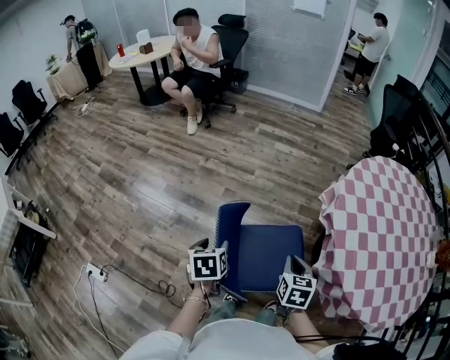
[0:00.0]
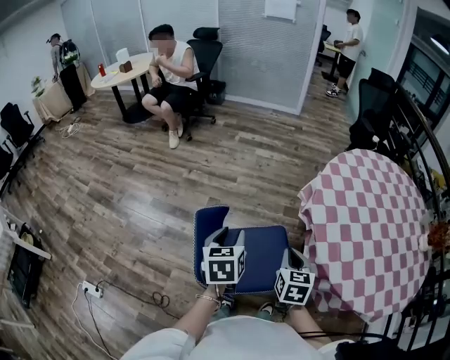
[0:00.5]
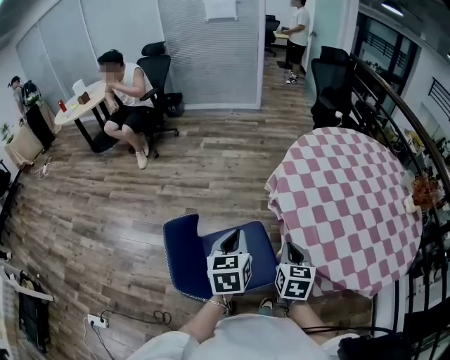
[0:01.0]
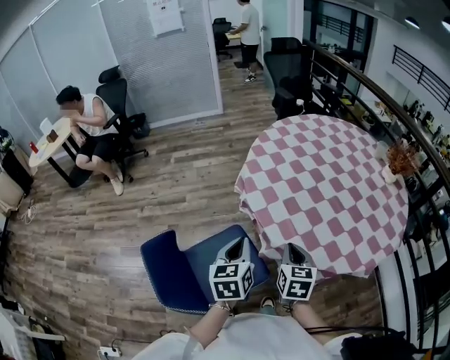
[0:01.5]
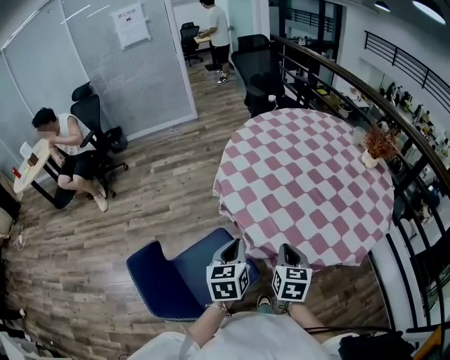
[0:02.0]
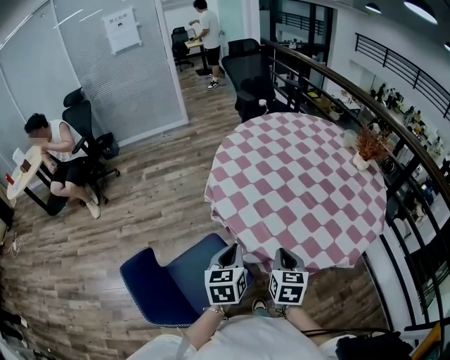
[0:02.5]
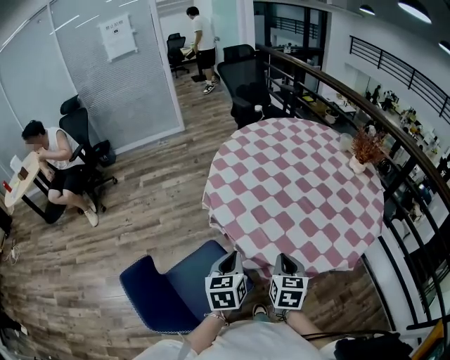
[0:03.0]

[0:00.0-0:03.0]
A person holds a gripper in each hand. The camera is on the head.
0.0 to 1.5 s: The left gripper shifts by approximately 40 cm, turns by about 40 degrees, and closes its fingers; the right gripper moves about 25 cm, and changes its angle by some 30 degrees.
1.5 to 3.0 s: Both grippers travel together to the right, some 5 cm.

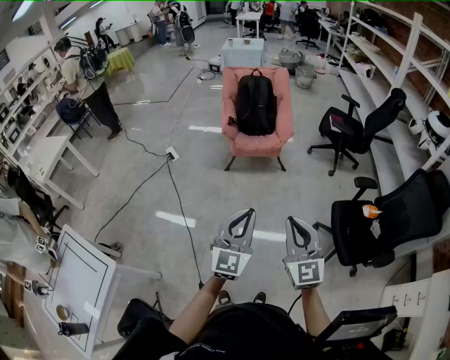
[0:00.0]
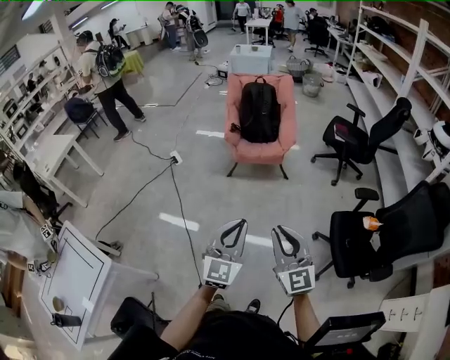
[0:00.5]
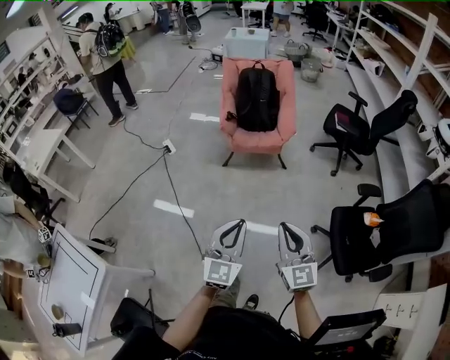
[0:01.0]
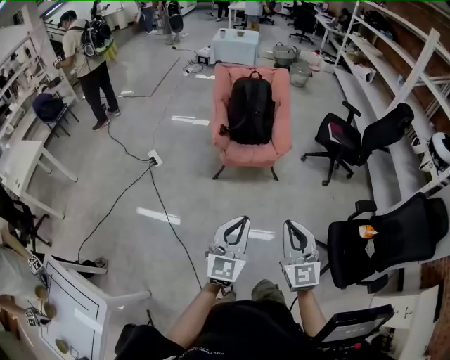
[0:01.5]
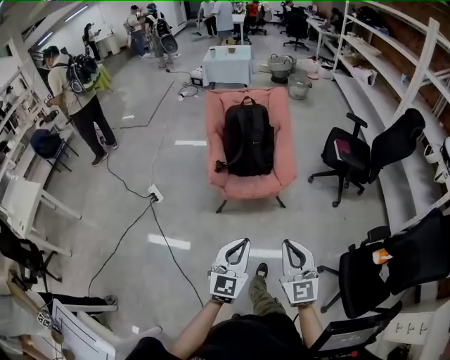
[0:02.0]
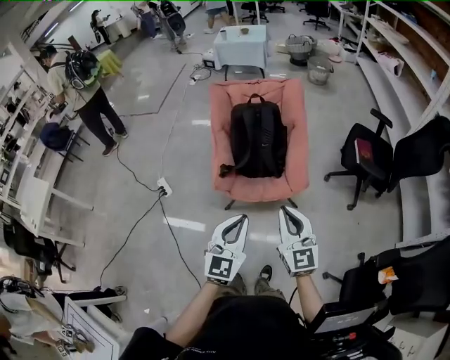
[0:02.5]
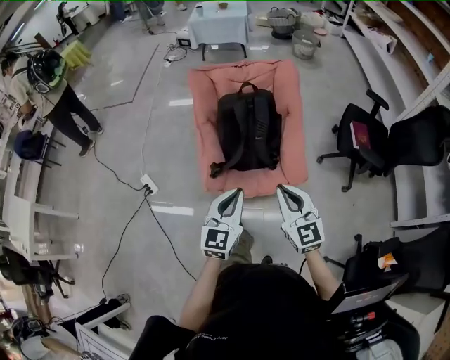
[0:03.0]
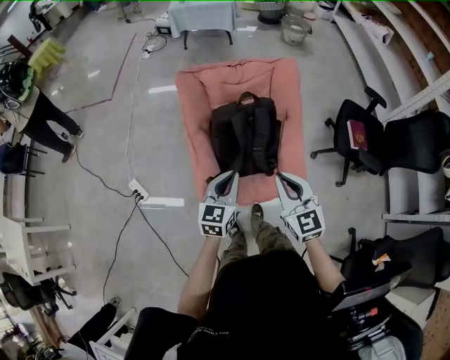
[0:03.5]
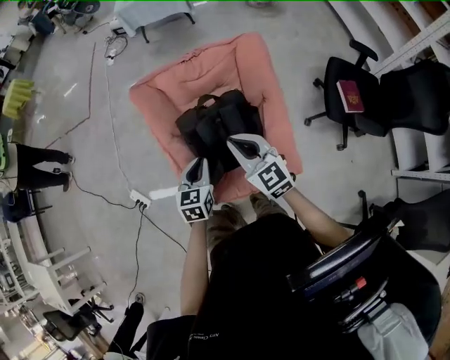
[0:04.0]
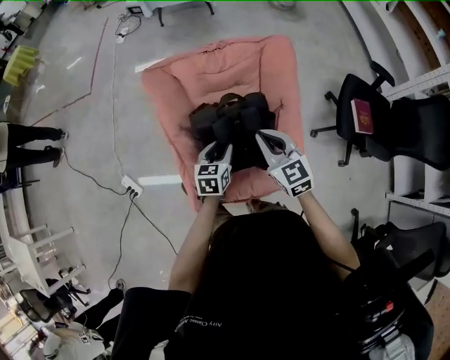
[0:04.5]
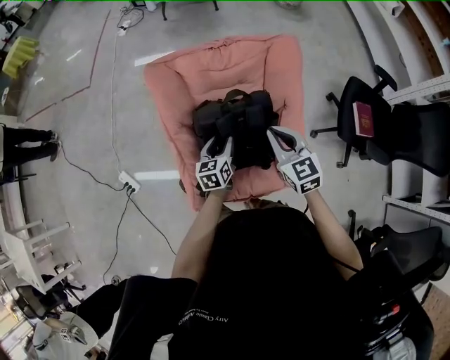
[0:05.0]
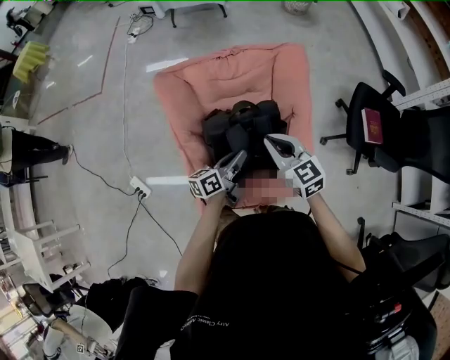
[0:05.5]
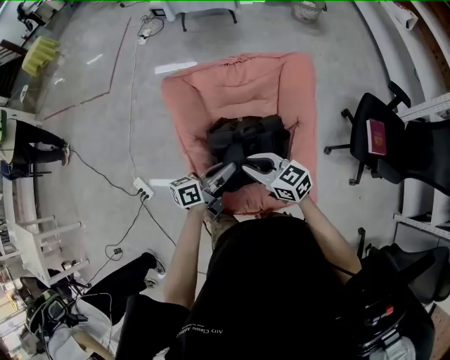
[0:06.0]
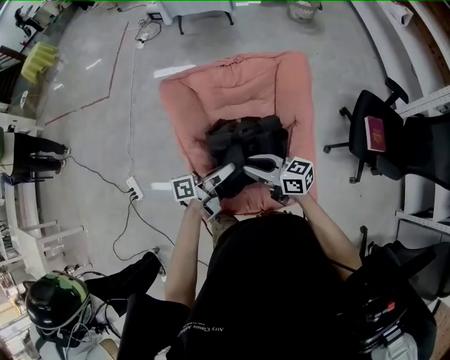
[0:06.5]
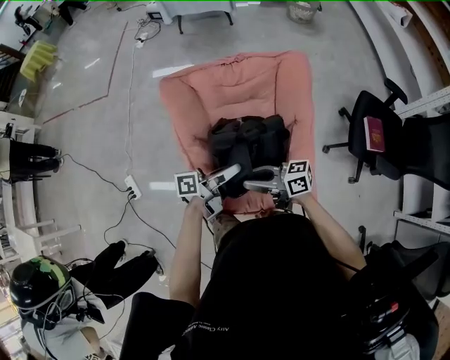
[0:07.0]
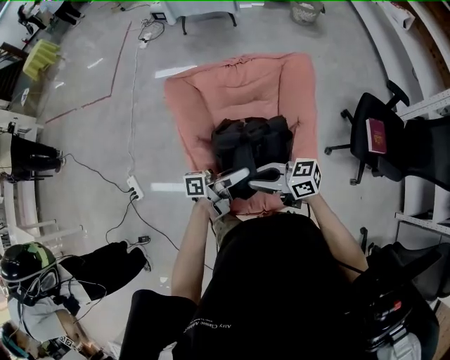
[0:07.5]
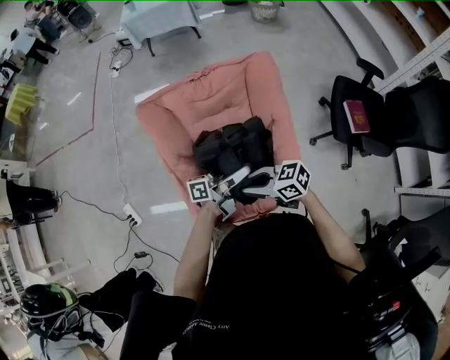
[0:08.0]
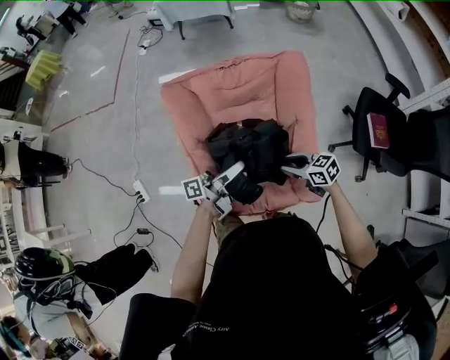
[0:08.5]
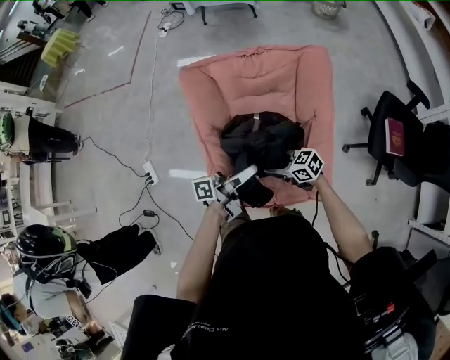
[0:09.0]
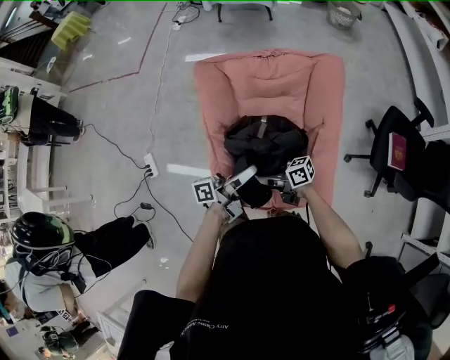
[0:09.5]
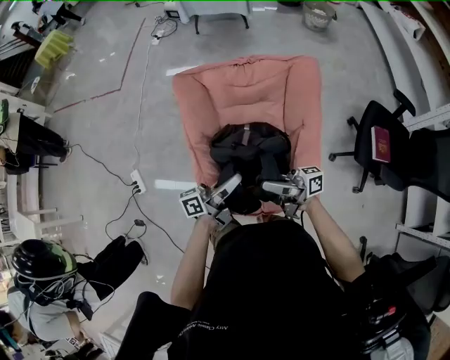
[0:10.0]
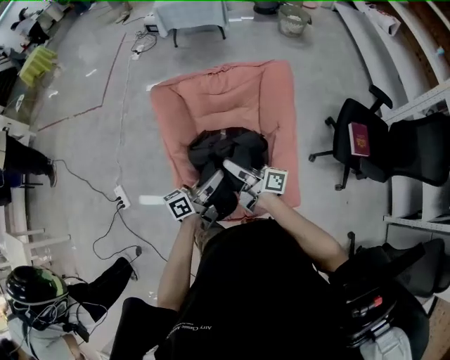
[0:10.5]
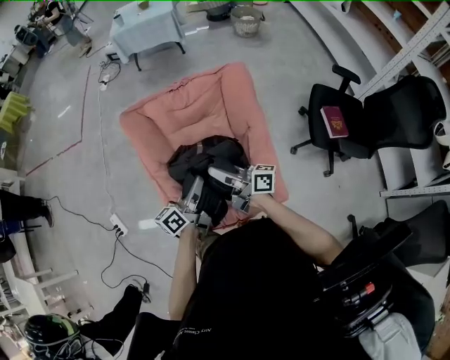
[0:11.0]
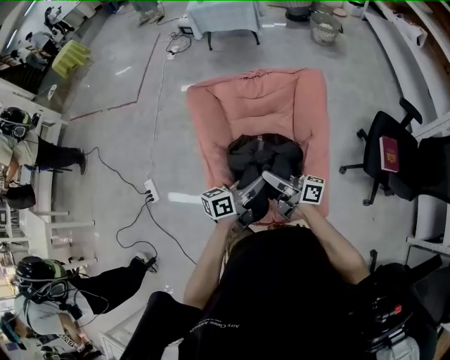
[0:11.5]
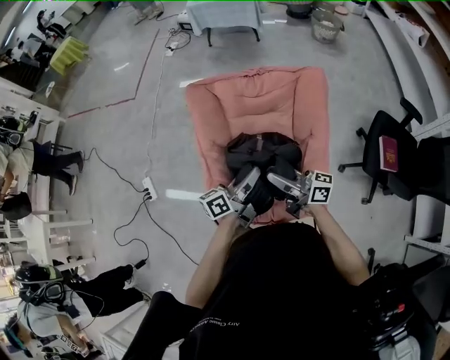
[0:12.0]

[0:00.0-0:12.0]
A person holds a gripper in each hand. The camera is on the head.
0.0 to 2.0 s: Both grippers travel together forward, approximately 40 cm.
2.0 to 4.0 s: Both grippers are carried forward, some 70 cm. The left gripper swivels roughly 30 degrees.
4.0 to 6.0 s: The right gripper shifts some 10 cm downward, and swivels roughly 30 degrees. The left gripper moves some 10 cm downward and comes back, swivels about 50 degrees, and opens, then closes once more.
6.0 to 8.0 s: The right gripper moves about 10 cm. The left gripper shifts by some 10 cm, changes its angle by about 30 degrees, and opens and closes again.
8.0 to 10.0 s: The right gripper goes downward and returns, about 10 cm each way, and tips its fingers upward by some 50 degrees; the left gripper ends up some 10 cm from where it was, and rotates approximately 30 degrees.
10.0 to 12.0 s: The right gripper swivels roughly 30 degrees.

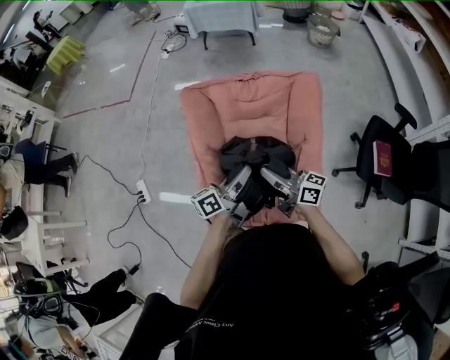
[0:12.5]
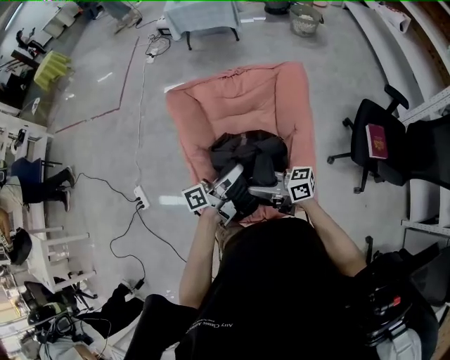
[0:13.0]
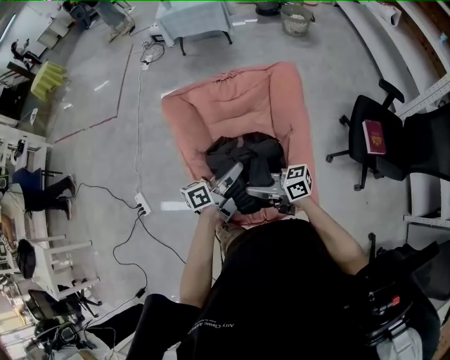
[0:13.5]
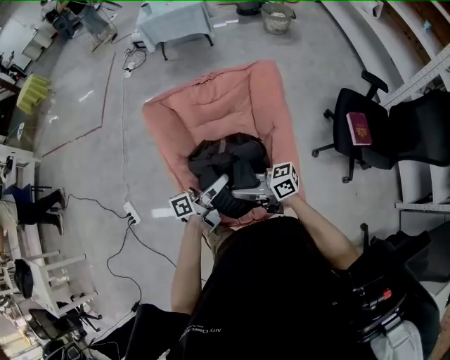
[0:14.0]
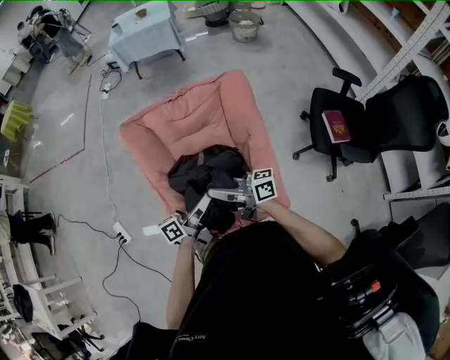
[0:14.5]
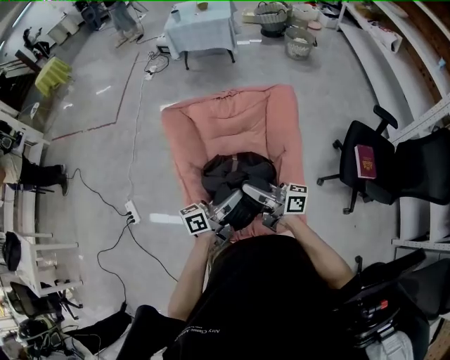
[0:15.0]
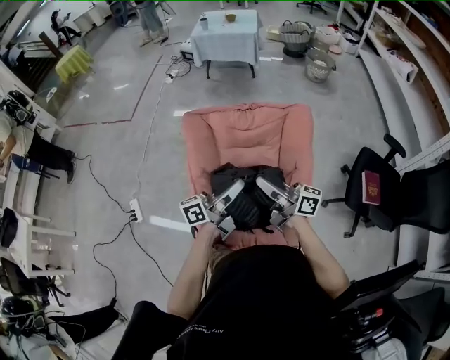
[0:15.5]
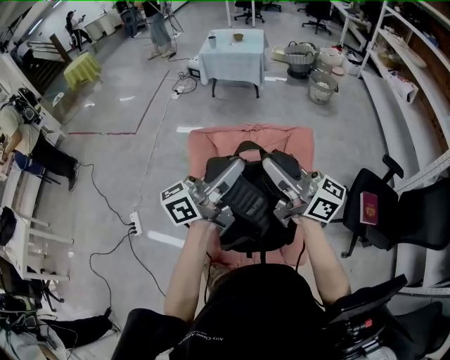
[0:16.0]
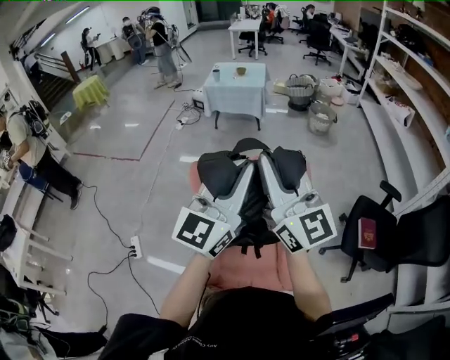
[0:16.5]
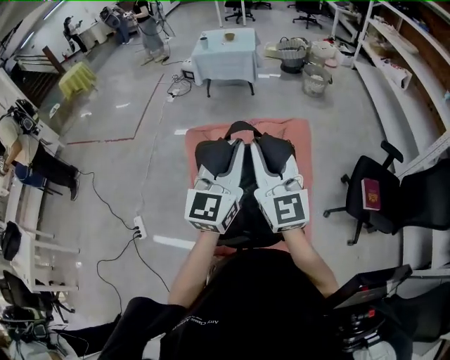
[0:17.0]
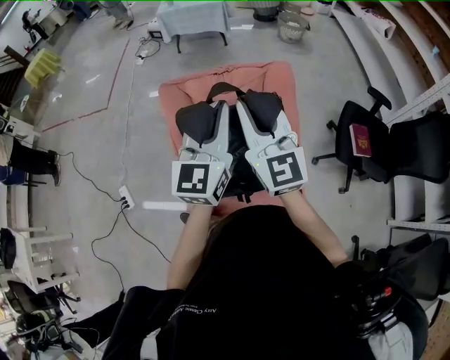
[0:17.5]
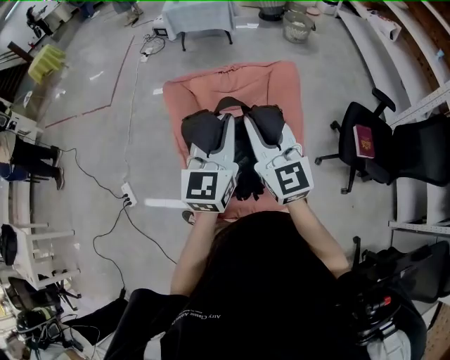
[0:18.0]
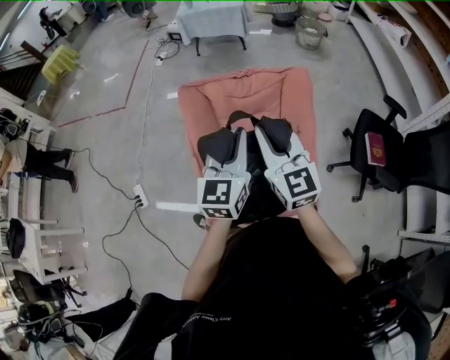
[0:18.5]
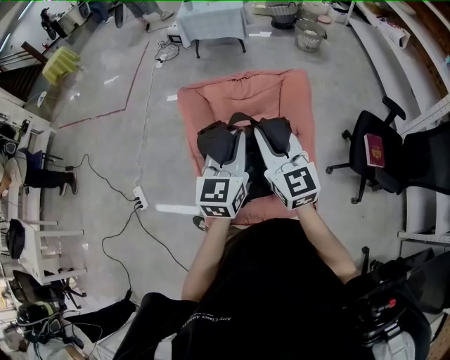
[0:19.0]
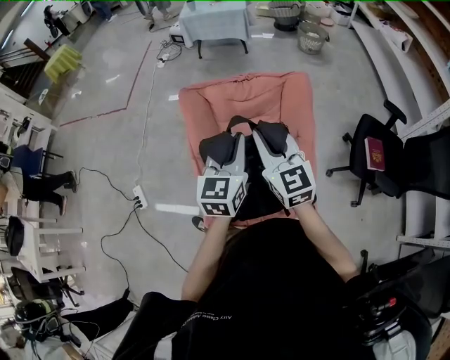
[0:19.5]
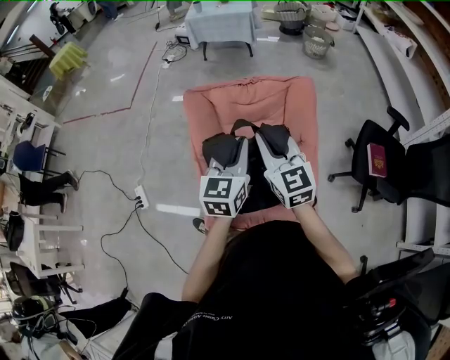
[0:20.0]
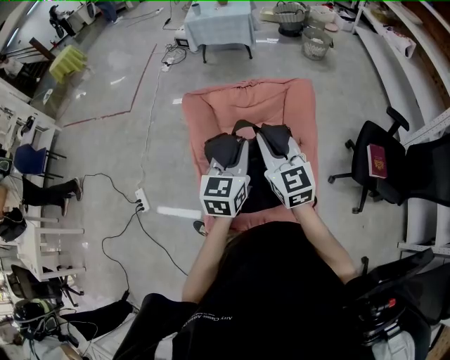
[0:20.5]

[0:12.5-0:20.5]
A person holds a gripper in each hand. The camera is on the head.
12.5 to 14.5 s: The left gripper ends up about 5 cm from where it was.
14.5 to 16.5 s: Both grippers move upward, some 40 cm. The left gripper twists approximately 70 degrees clockwise, seen from behind; the right gripper rolls counterclockwise, seen from behind, by some 70 degrees.
16.5 to 18.5 s: The two grippers go approximately 20 cm downward. The right gripper swivels approximately 20 degrees. The left gripper swivels roughly 20 degrees.
18.5 to 20.5 s: The grippers move only a little.

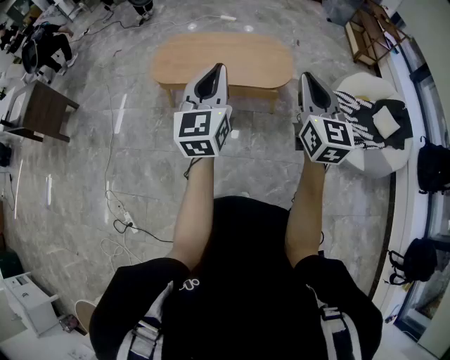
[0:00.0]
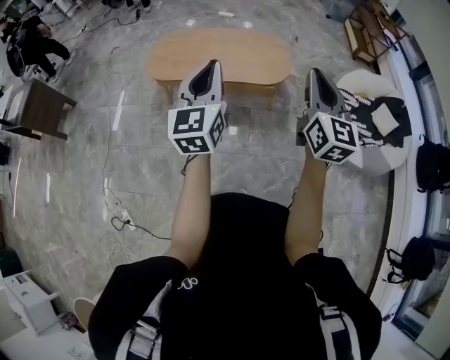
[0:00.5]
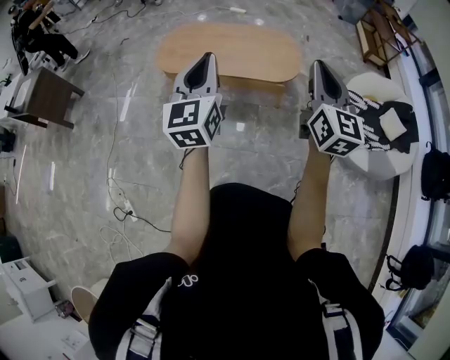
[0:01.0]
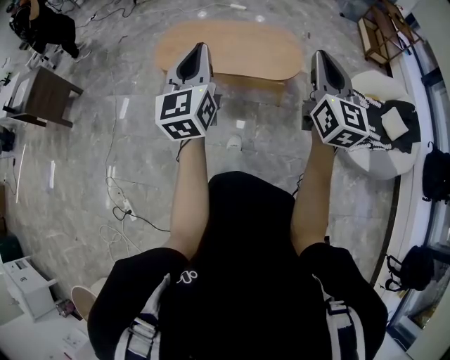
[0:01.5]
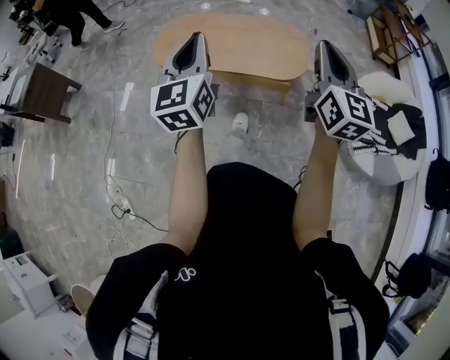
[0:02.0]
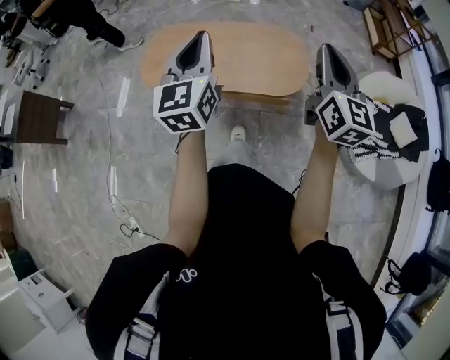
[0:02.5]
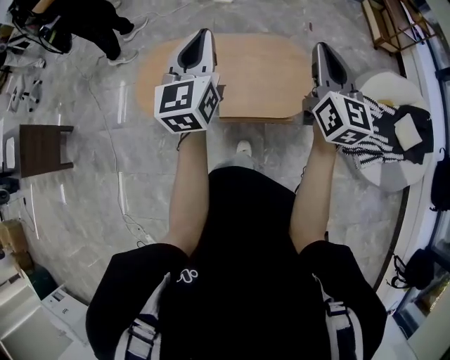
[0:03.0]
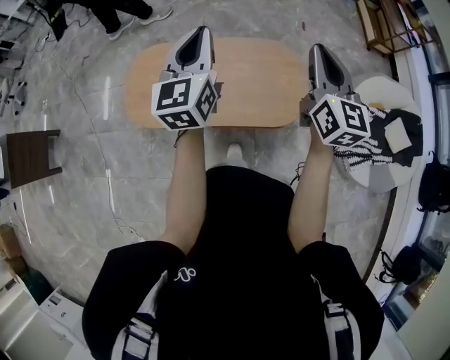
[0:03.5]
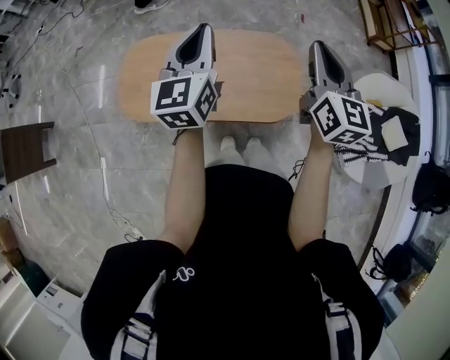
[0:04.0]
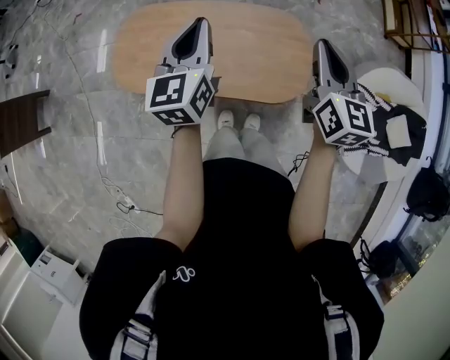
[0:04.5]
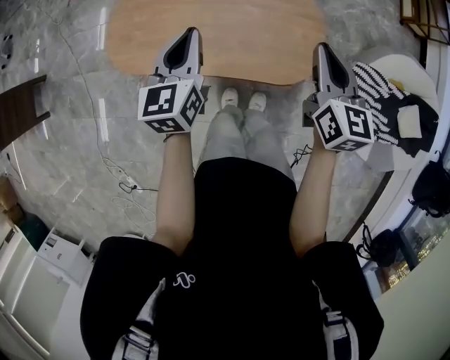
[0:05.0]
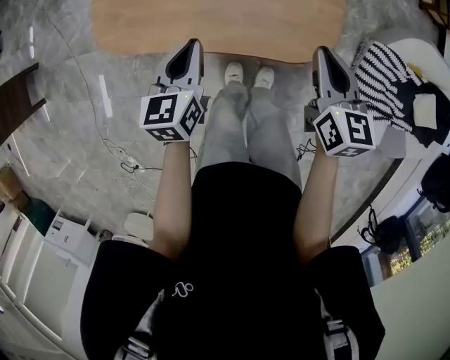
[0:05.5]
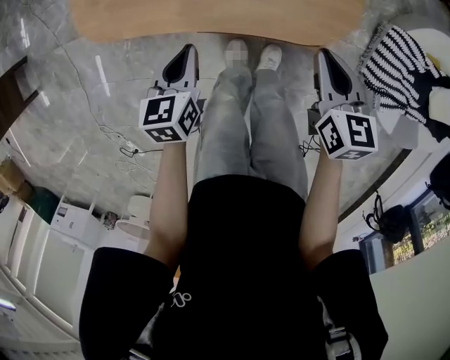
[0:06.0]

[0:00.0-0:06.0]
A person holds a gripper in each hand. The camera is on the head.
0.0 to 2.0 s: The grippers both shift forward by some 10 cm.
2.0 to 4.0 s: The two grippers travel together, forward, about 50 cm.
4.0 to 6.0 s: Both grippers travel together downward, some 40 cm. The left gripper angles its fingers downward, by approximately 40 degrees. The right gripper points its fingers about 30 degrees further downward.
